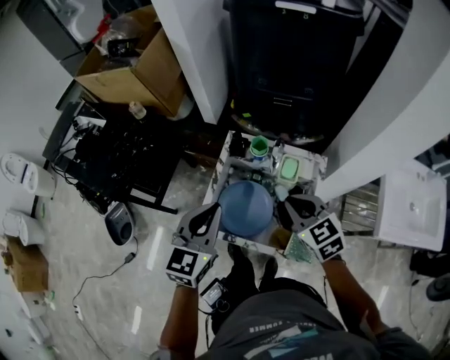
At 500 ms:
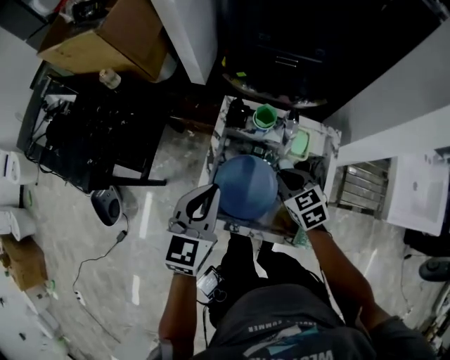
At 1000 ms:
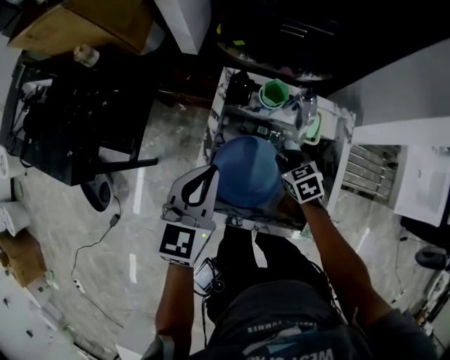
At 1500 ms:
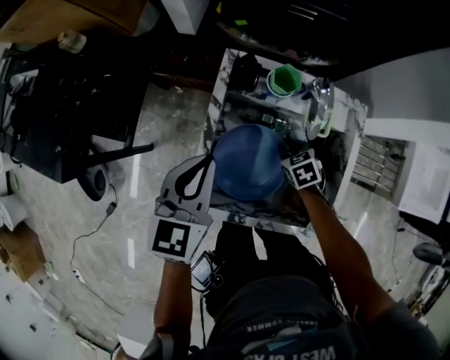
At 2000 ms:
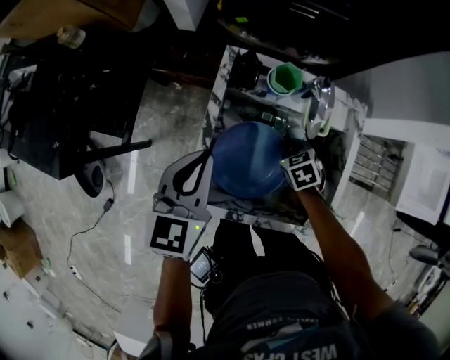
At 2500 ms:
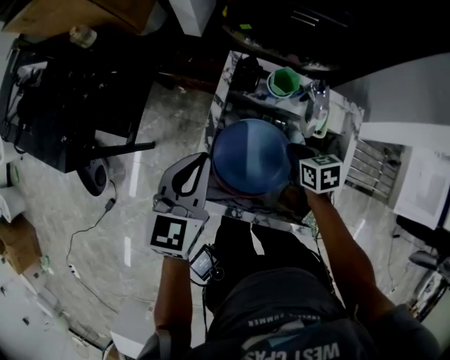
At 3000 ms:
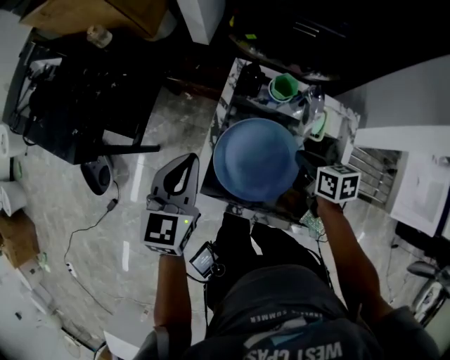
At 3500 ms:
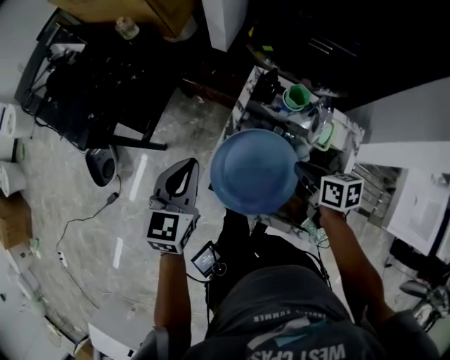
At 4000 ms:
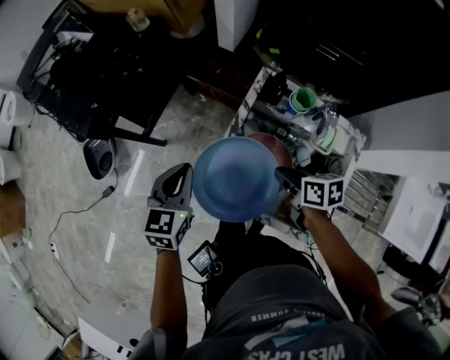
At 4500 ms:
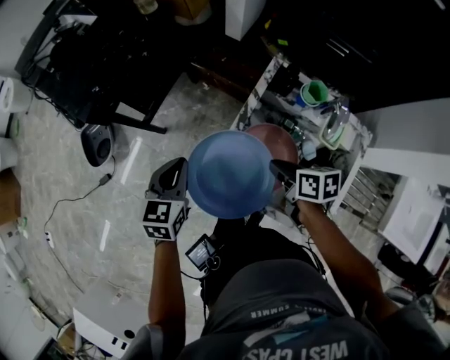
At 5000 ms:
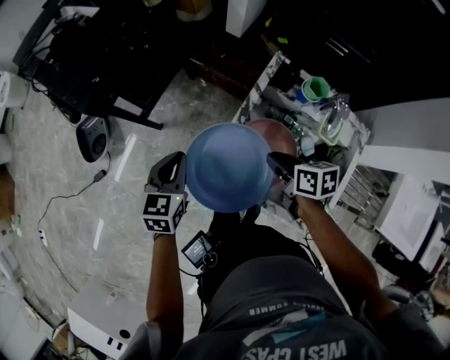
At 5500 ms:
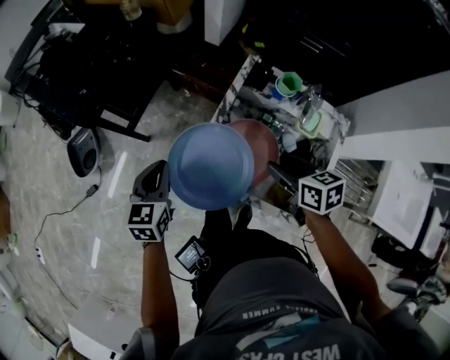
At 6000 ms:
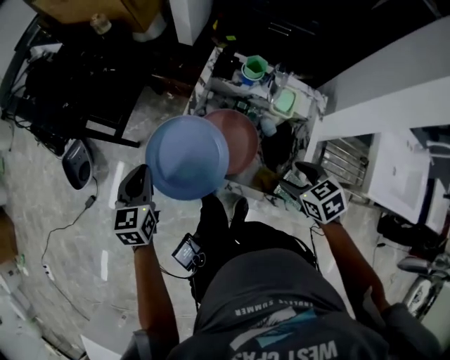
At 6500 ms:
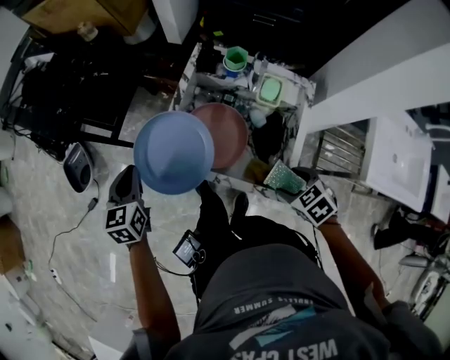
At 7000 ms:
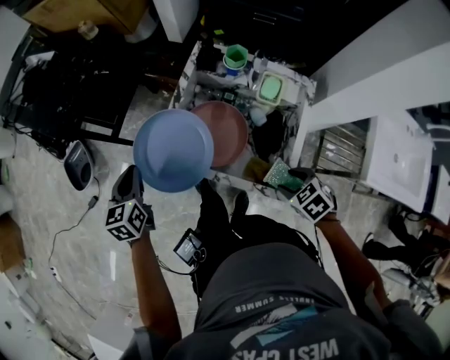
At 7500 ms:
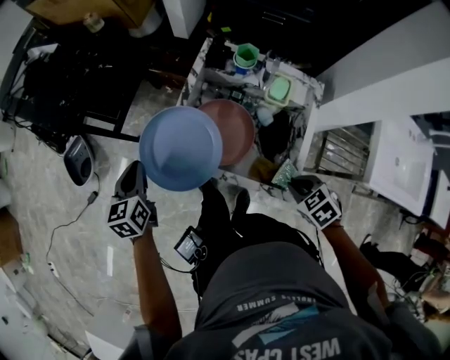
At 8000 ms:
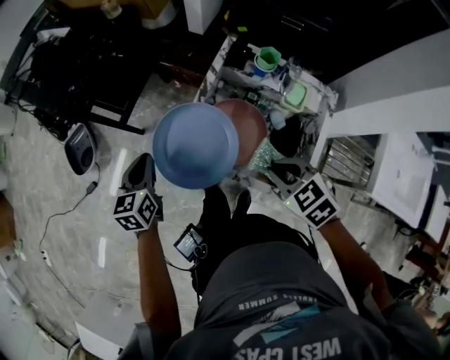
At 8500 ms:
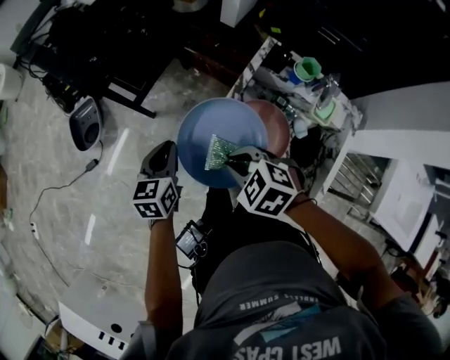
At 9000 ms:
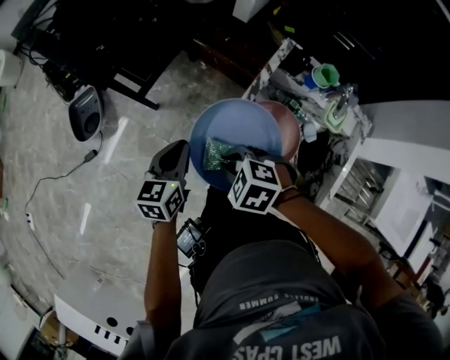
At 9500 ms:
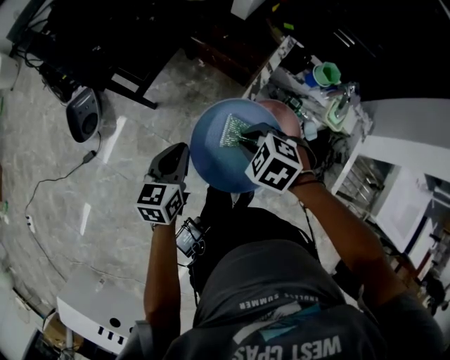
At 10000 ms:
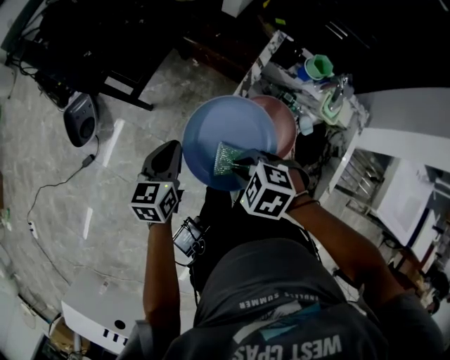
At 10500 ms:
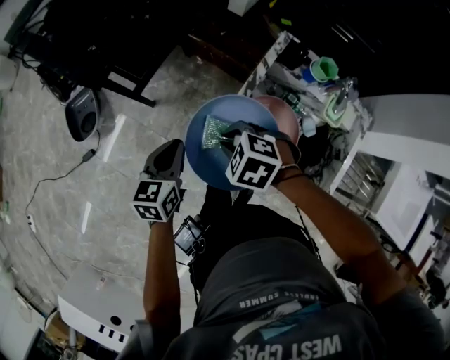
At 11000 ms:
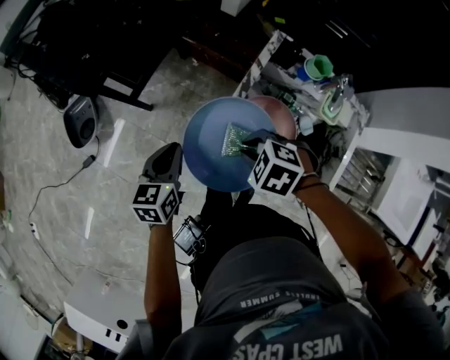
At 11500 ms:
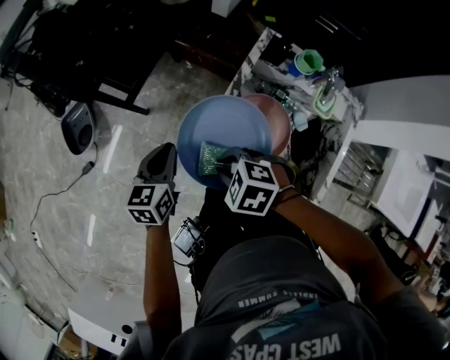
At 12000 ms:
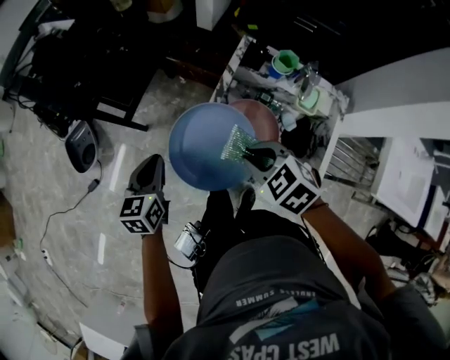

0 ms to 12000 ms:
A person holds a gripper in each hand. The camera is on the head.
0 ms to 2000 ms: The right gripper goes about 35 cm downward, and points its fingers approximately 30 degrees further downward. The left gripper travels downward and forward by roughly 20 cm.
2000 ms to 4000 ms: The right gripper goes about 15 cm upward, and turns by some 40 degrees. The left gripper ends up roughly 15 cm from where it was.
4000 ms to 6000 ms: The right gripper heads backward and to the right, covering some 15 cm, swivels approximately 40 degrees, and opens, while the left gripper heads backward, covering some 5 cm.
6000 ms to 8000 ms: The right gripper moves to the left, roughly 10 cm, goes backward and returns, roughly 10 cm each way, swivels approximately 20 degrees, and closes its fingers.
8000 ms to 10000 ms: The right gripper is displaced to the left, forward and downward by about 20 cm, and swivels about 30 degrees.
10000 ms to 12000 ms: The right gripper moves left and right over some 10 cm, changing direction 2 times, and swivels roughly 30 degrees.

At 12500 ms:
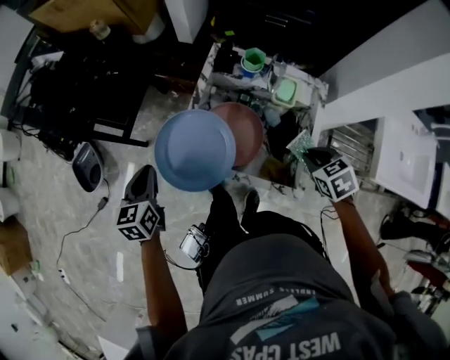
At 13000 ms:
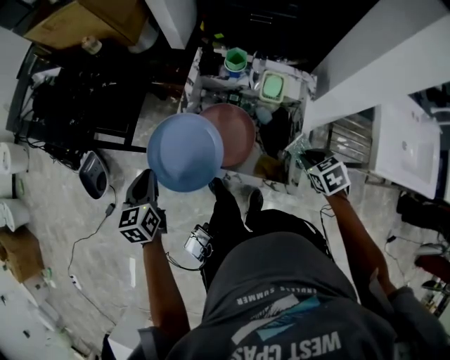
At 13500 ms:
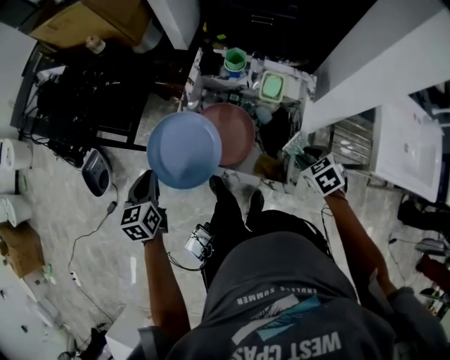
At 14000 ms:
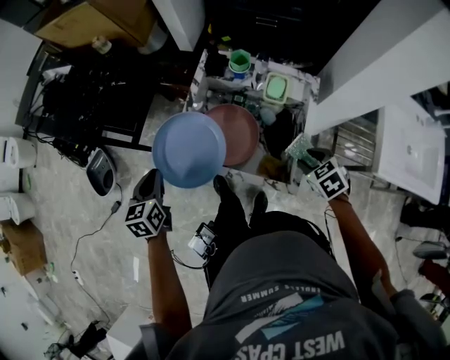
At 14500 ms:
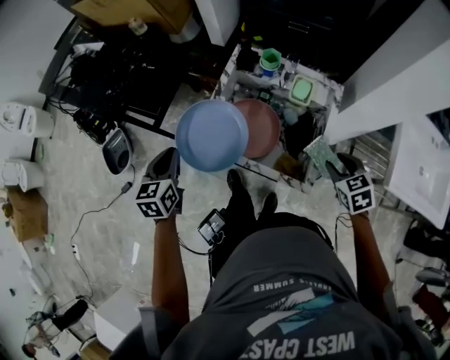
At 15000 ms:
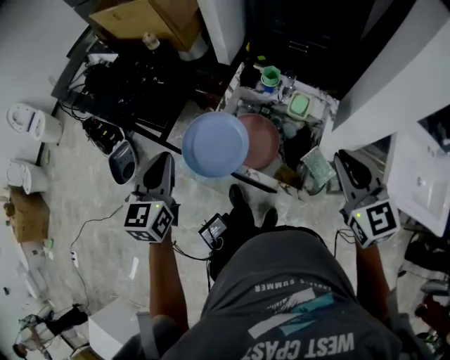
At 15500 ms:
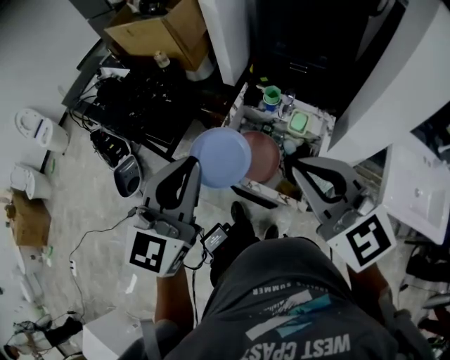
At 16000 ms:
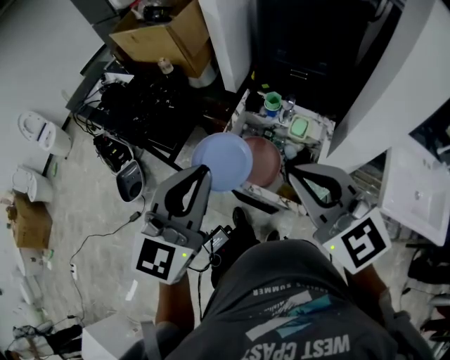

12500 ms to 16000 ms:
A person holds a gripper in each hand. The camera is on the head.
12500 ms to 14500 ms: The left gripper ends up approximately 5 cm from where it was. Meanwhile the right gripper shifts roughly 5 cm to the right, and opens up.
14500 ms to 16000 ms: The right gripper moves upward and to the left, some 40 cm, points its fingers some 40 degrees further upward, and closes; the left gripper shifts some 35 cm upward, to the right and backward, and changes its angle by some 40 degrees.

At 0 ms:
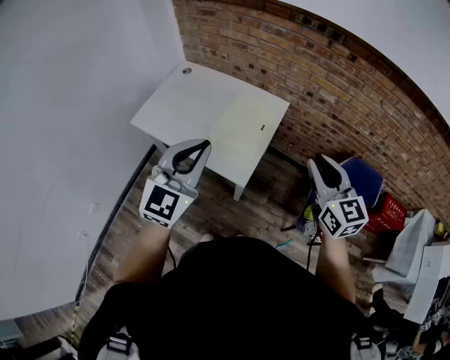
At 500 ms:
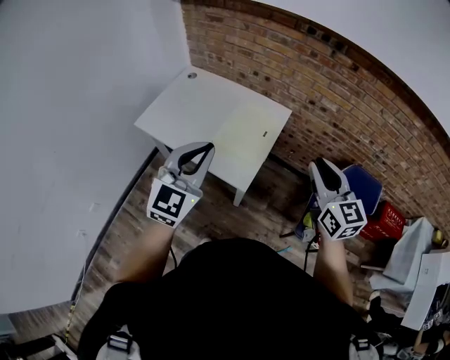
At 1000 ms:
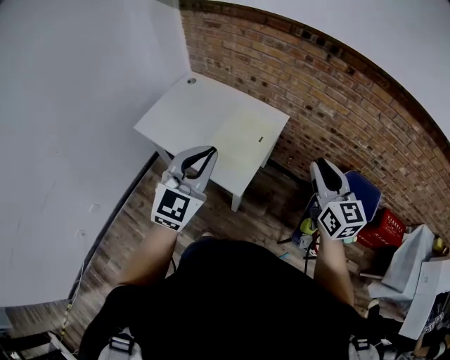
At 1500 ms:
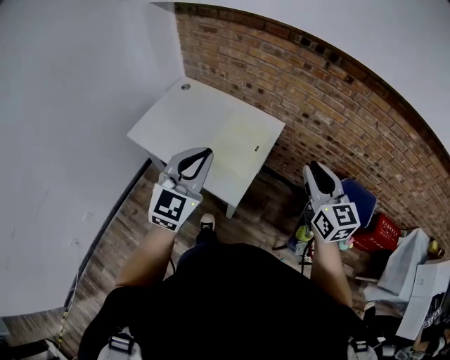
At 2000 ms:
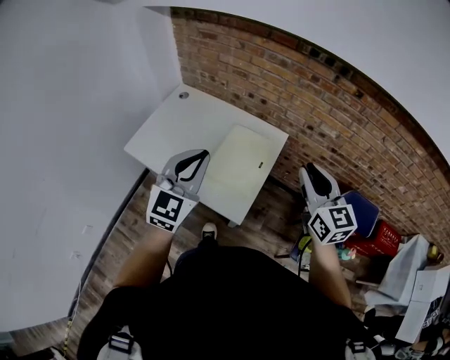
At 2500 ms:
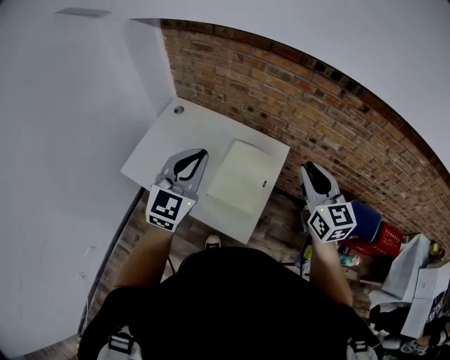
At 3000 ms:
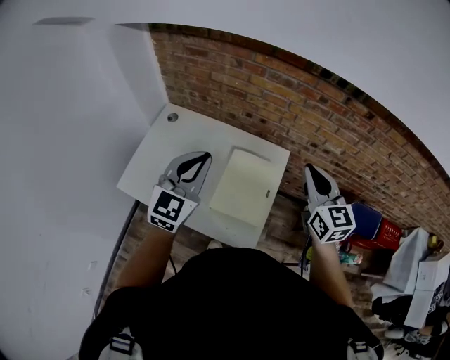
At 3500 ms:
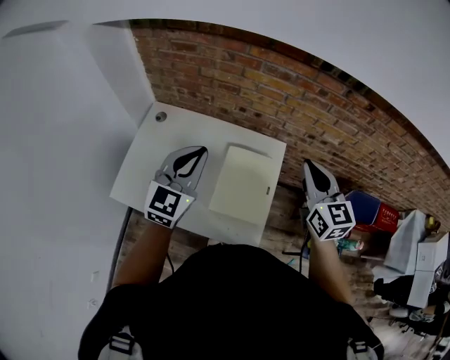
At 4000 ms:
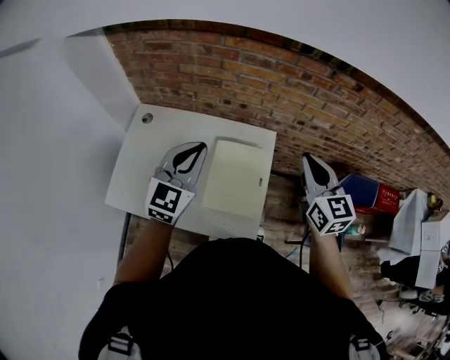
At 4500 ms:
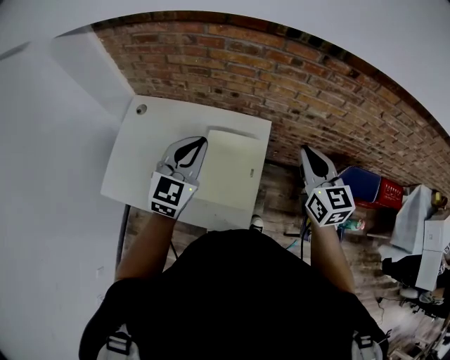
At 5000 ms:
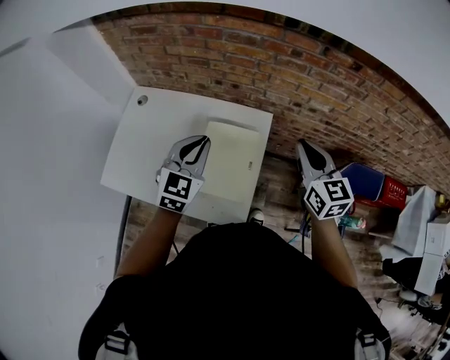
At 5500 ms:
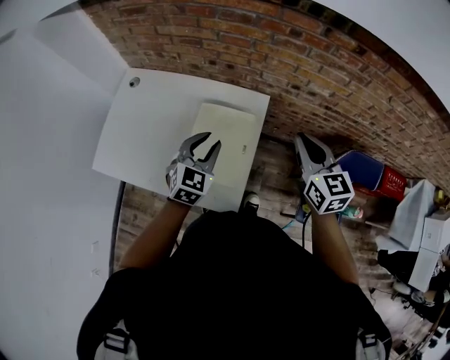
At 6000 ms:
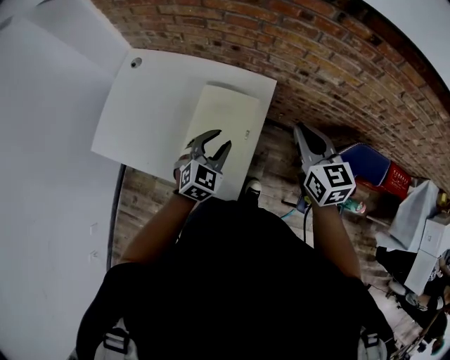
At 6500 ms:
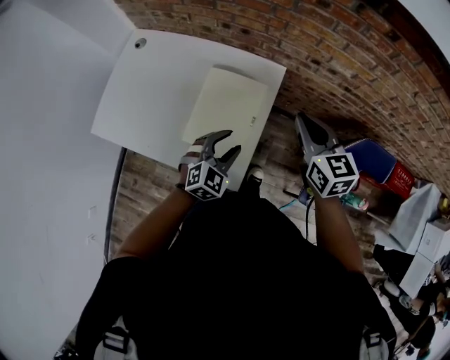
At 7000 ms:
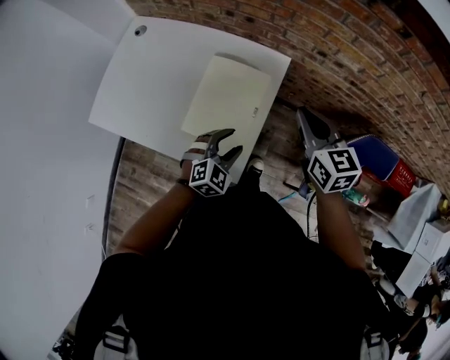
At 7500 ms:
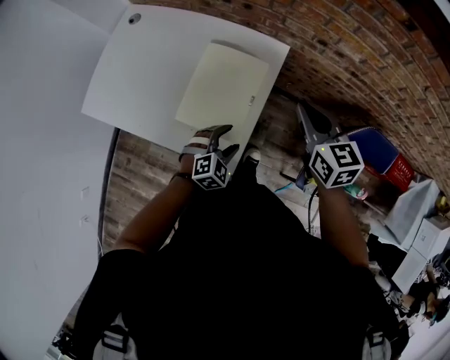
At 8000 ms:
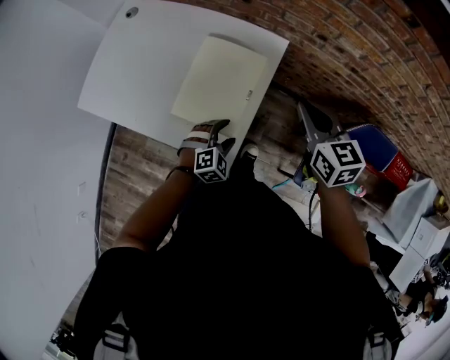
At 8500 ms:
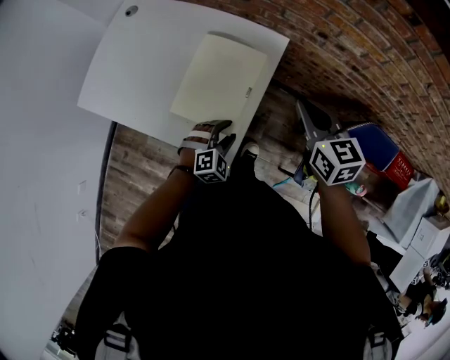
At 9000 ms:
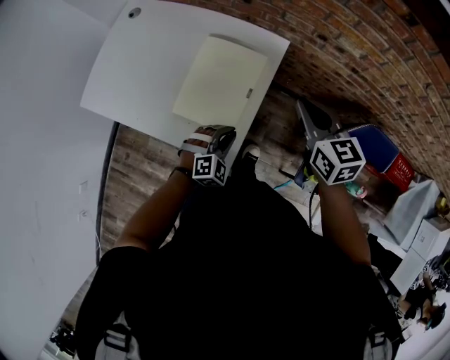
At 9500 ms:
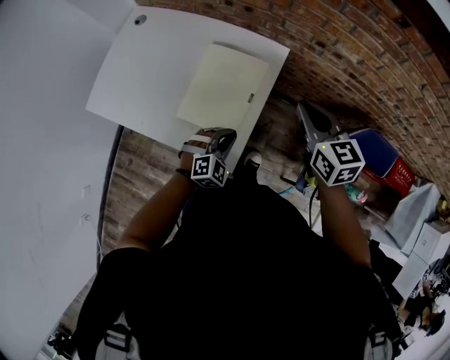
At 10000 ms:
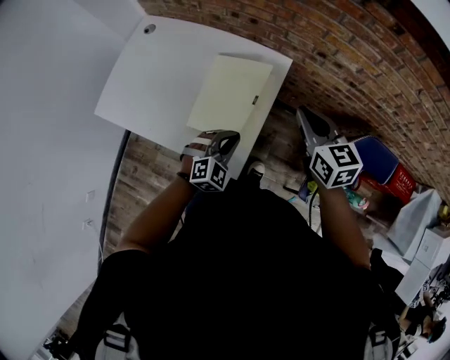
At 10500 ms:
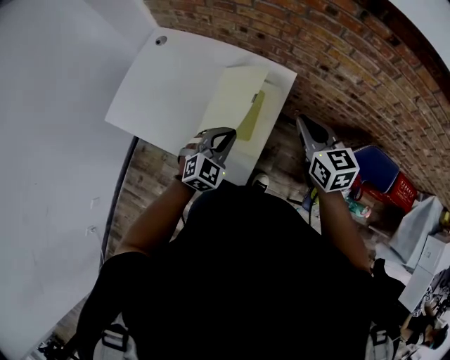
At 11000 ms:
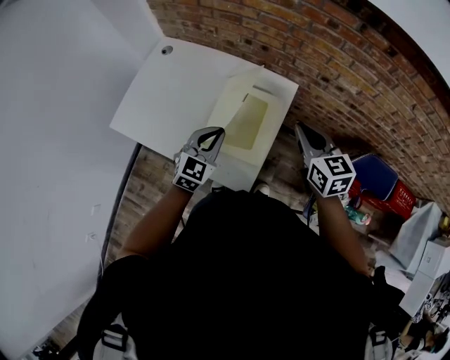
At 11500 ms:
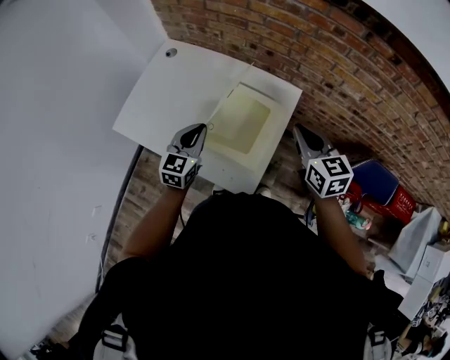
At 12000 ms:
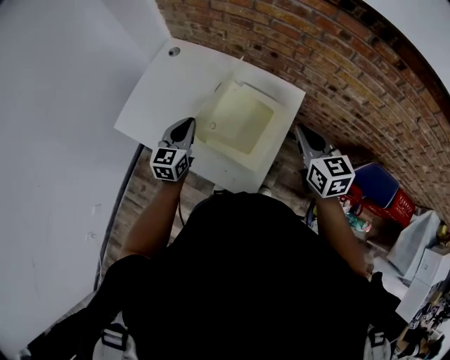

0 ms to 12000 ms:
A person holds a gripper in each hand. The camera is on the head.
0 ms to 2000 ms: Both grippers move forward, some 15 cm.
2000 ms to 4000 ms: Both grippers move forward, some 20 cm.
4000 ms to 6000 ms: The left gripper heads downward and to the right, covering about 25 cm, swivels roughly 30 degrees, and opens, while the right gripper goes about 15 cm downward and to the right.
6000 ms to 8000 ms: The left gripper travels downward and backward by about 20 cm, swivels roughly 20 degrees, and opens its fingers. Meanwhile the right gripper shifts roughly 5 cm downward.
8000 ms to 10000 ms: The left gripper is displaced upward by approximately 10 cm, and closes its fingers.
10000 ms to 12000 ms: The left gripper is displaced to the left and forward by approximately 25 cm, and rotates around the line of its fingers by approximately 50 degrees, counterclockwise from behind. Meanwhile the right gripper shifts approximately 5 cm to the left.
